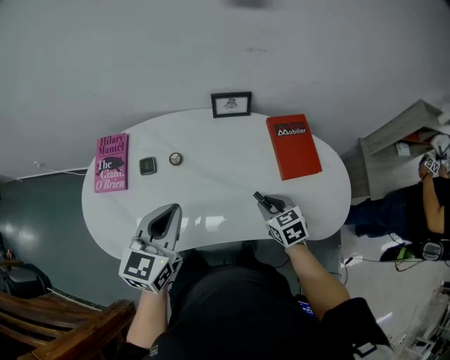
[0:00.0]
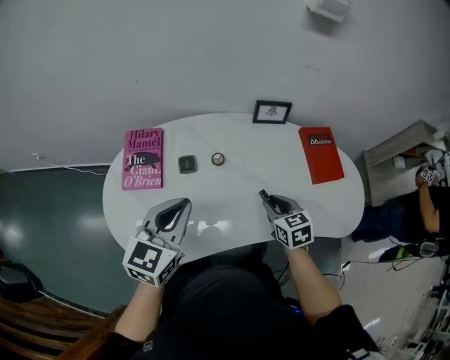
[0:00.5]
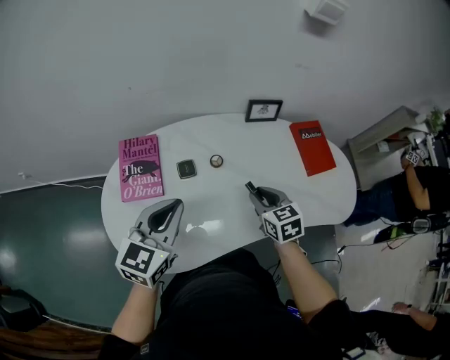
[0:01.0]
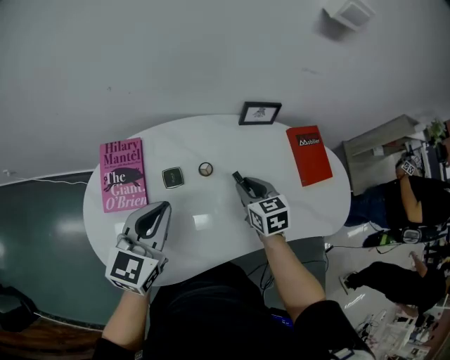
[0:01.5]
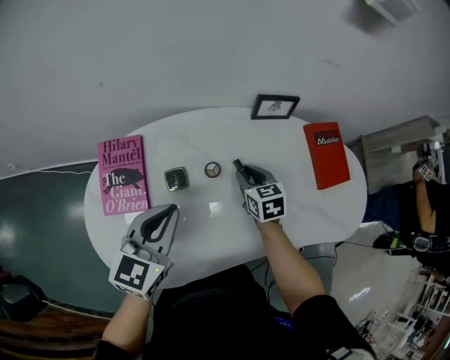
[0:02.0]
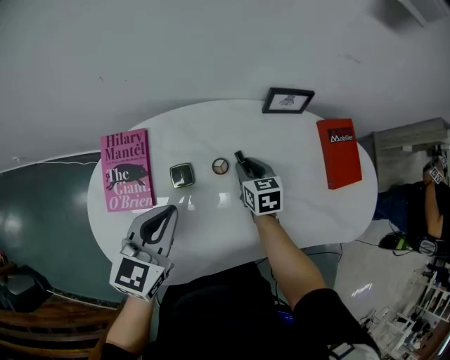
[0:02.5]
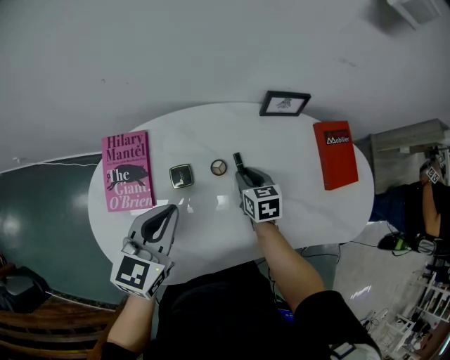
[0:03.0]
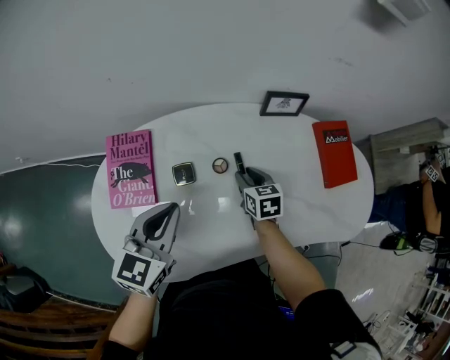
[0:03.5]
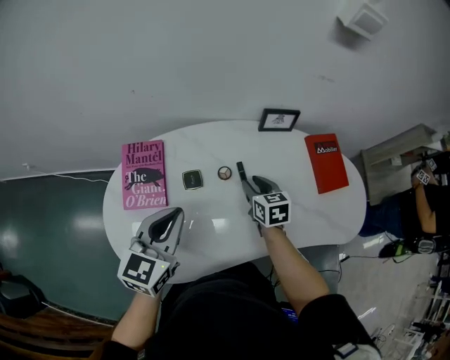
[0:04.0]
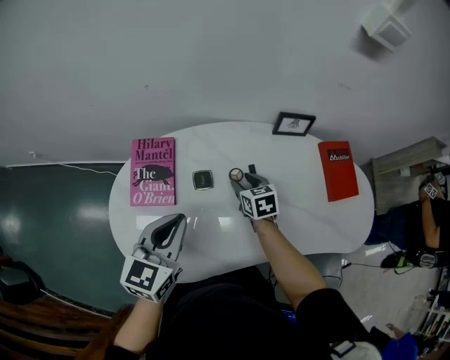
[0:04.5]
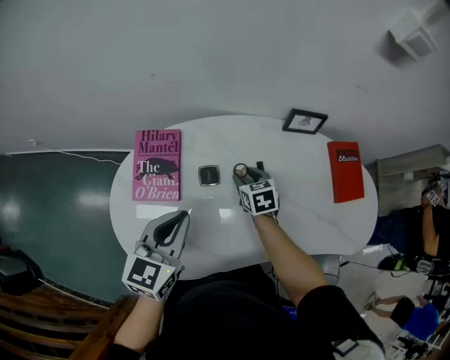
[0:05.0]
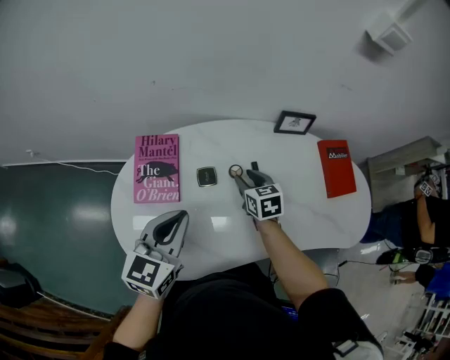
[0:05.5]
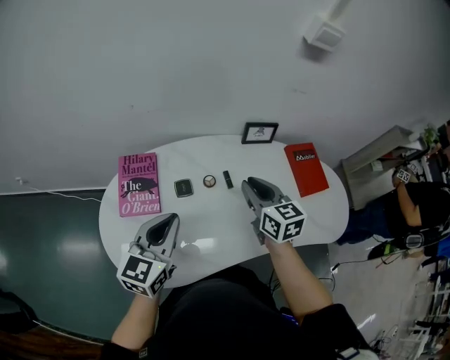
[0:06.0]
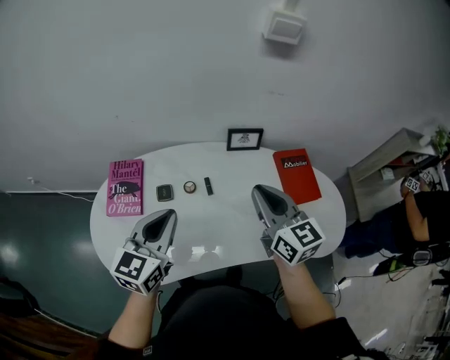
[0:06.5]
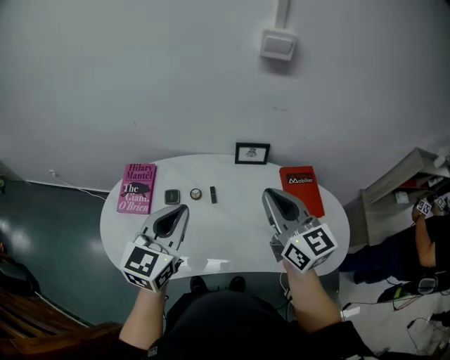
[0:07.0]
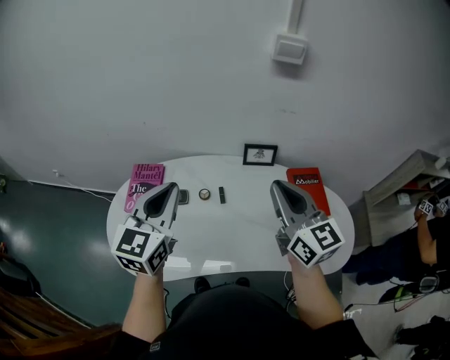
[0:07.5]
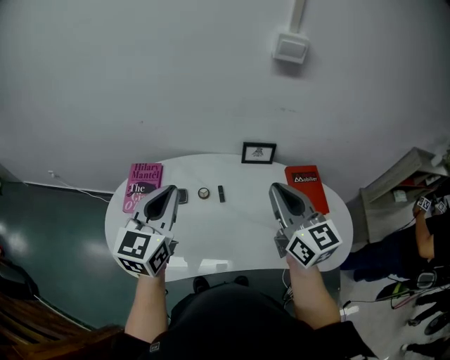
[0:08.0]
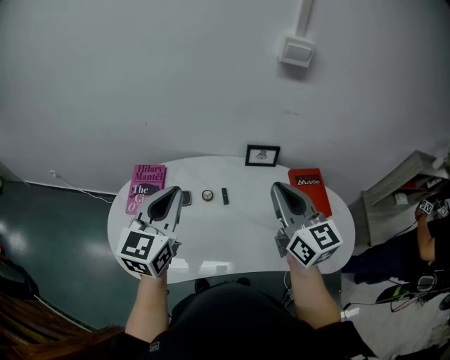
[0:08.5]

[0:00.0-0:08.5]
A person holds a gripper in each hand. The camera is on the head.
0:00.0 to 0:02.0: Both grippers move to the left and forward, approximately 25 cm.
0:02.0 to 0:04.0: The right gripper shifts by roughly 5 cm. The left gripper moves some 5 cm.
0:04.0 to 0:06.5: The right gripper travels upward and to the right by some 25 cm, tips its fingers upward by roughly 30 degrees, and closes. Meanwhile the left gripper moves to the right and upward, roughly 10 cm.
0:06.5 to 0:08.5: Both grippers move upward, about 5 cm.

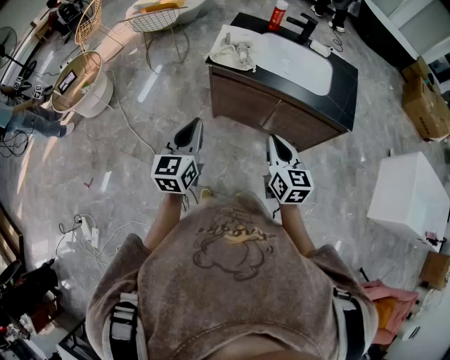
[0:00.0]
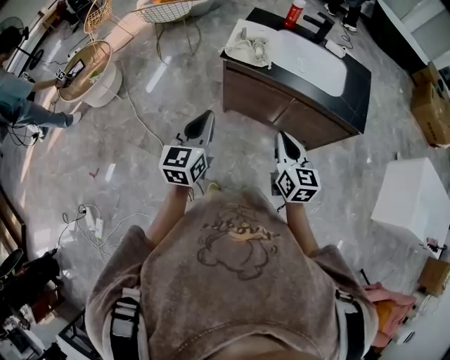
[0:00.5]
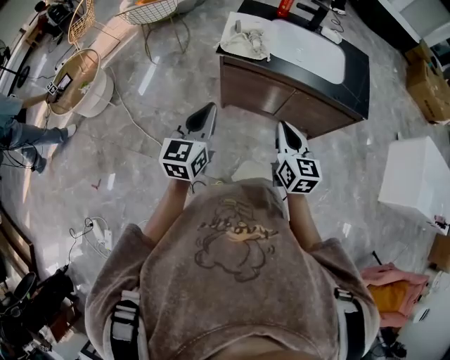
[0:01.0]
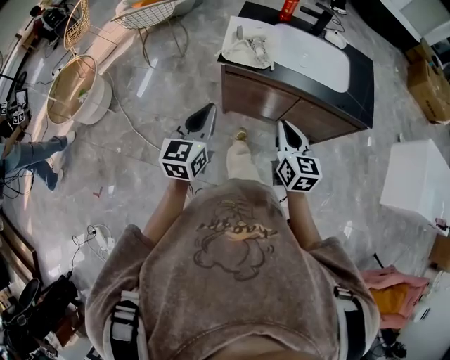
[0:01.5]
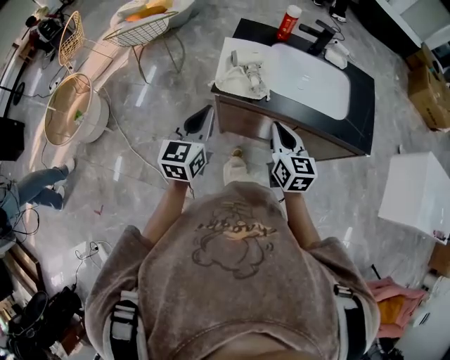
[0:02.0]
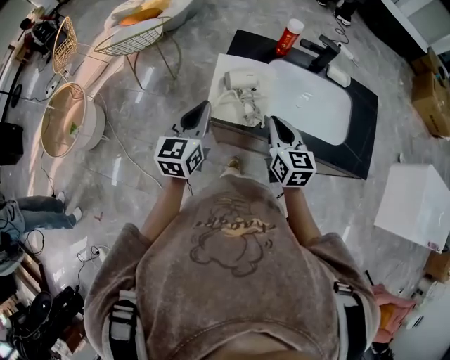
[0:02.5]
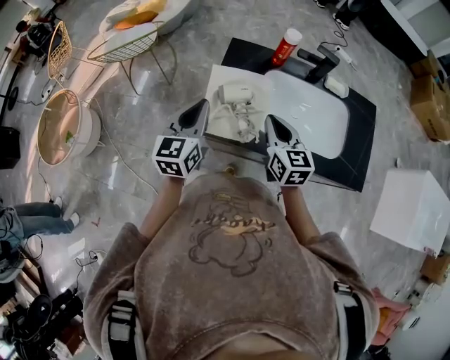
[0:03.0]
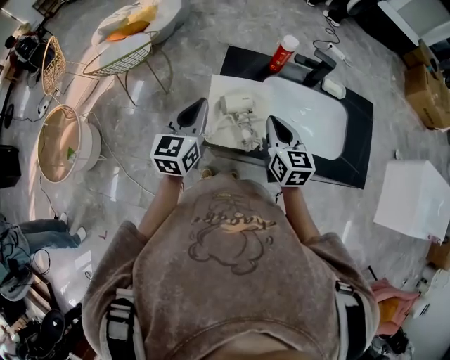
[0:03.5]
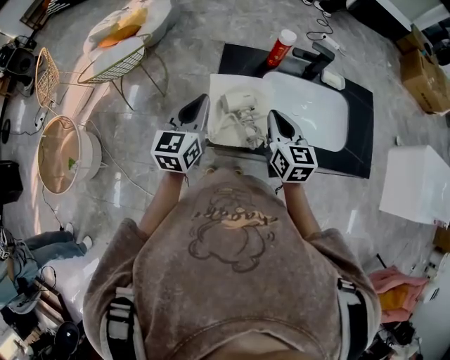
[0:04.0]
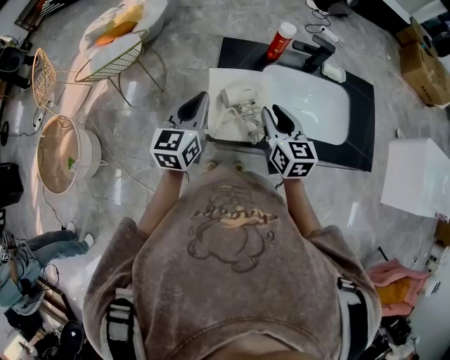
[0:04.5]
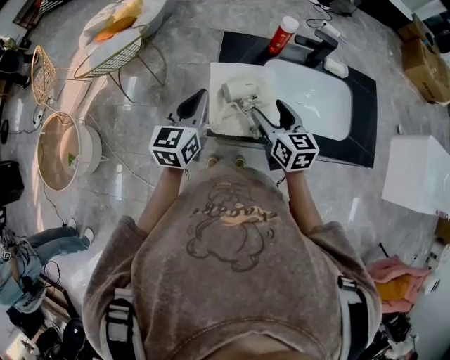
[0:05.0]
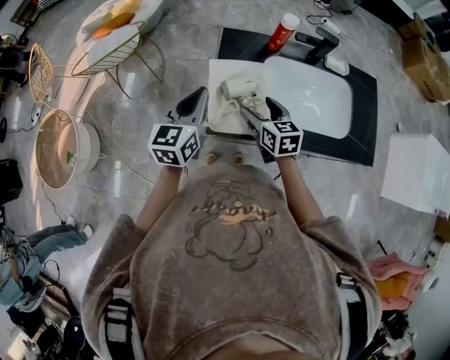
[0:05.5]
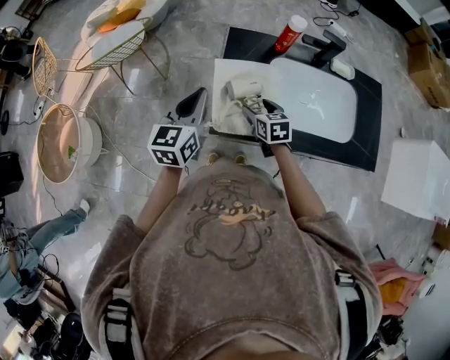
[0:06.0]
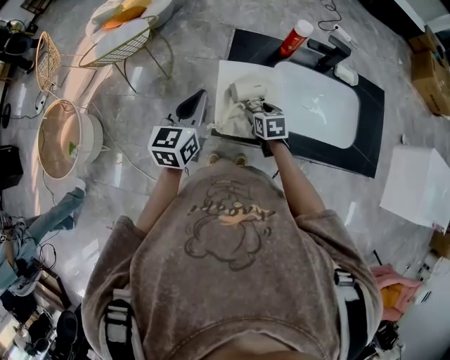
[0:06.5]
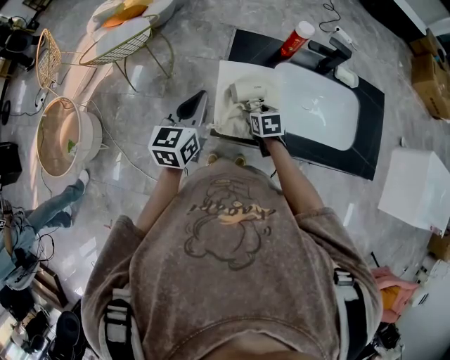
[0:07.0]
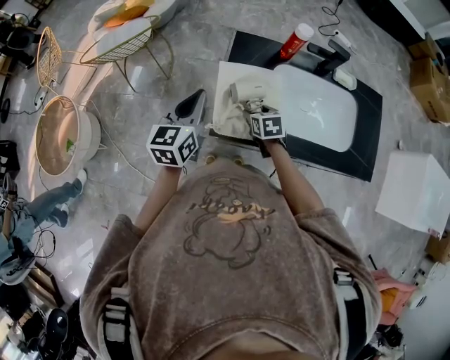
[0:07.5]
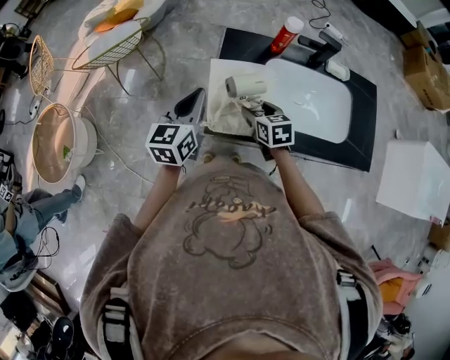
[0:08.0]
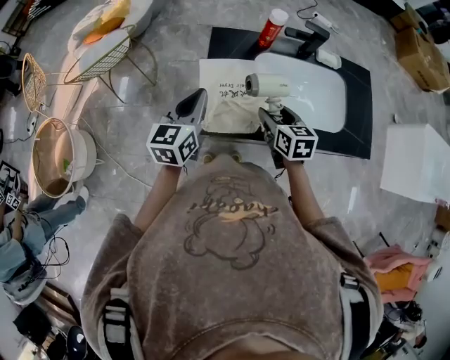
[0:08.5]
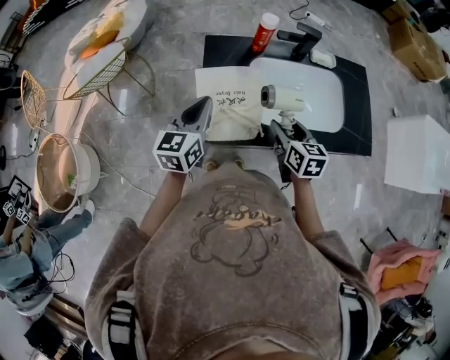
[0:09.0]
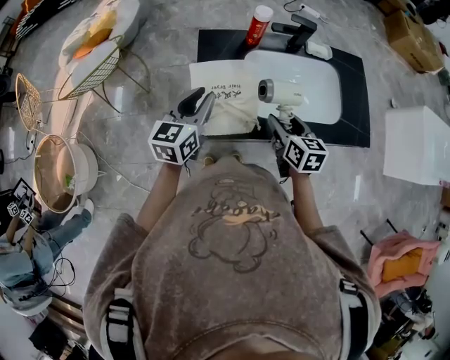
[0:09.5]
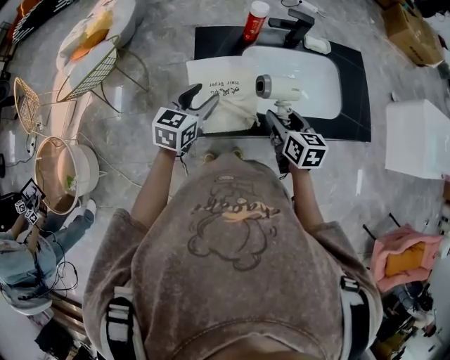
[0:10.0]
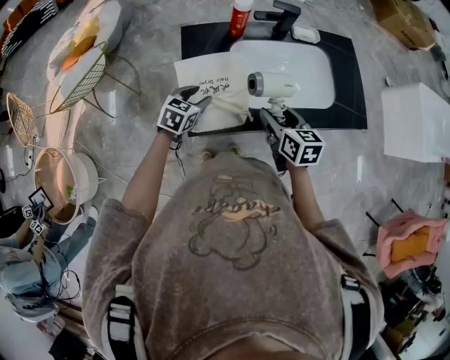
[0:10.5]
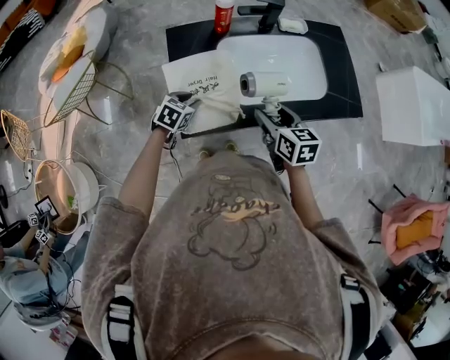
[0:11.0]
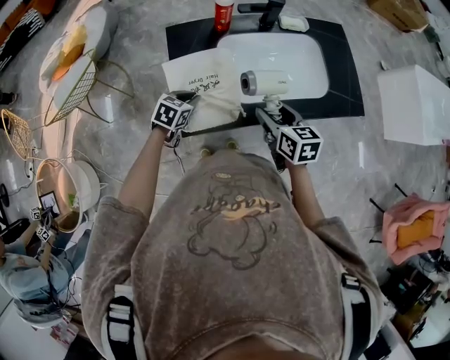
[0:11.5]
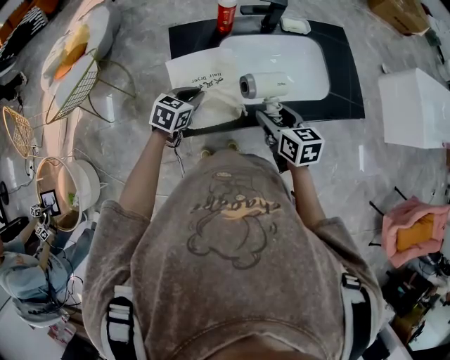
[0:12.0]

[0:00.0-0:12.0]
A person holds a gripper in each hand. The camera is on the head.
0:00.0 to 0:02.0: The grippers both shift forward by about 25 cm.
0:02.0 to 0:04.0: The grippers both shift forward by approximately 25 cm.
0:04.0 to 0:06.0: The right gripper goes about 15 cm downward, changes its angle by some 30 degrees, and opens.
0:06.0 to 0:08.0: The grippers make only small movements.
0:08.0 to 0:10.0: The right gripper heads to the right and upward, covering roughly 15 cm, and swivels some 30 degrees; the left gripper travels to the right and downward by roughly 10 cm, turns by roughly 30 degrees, and opens its fingers.
0:10.0 to 0:12.0: The left gripper heads downward, covering approximately 10 cm, rotates about 20 degrees, and closes its fingers.

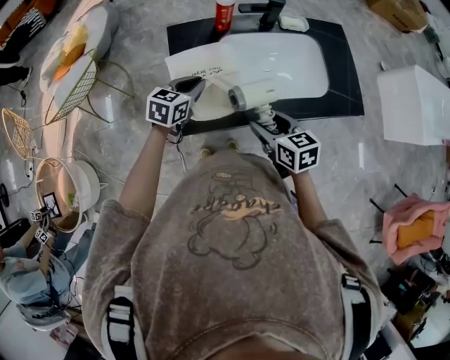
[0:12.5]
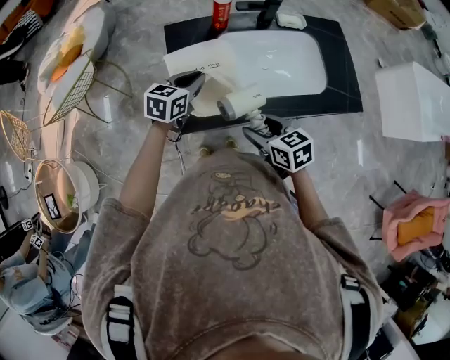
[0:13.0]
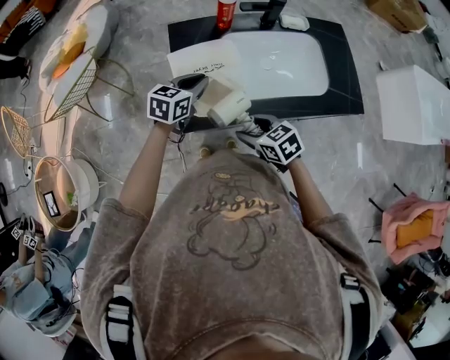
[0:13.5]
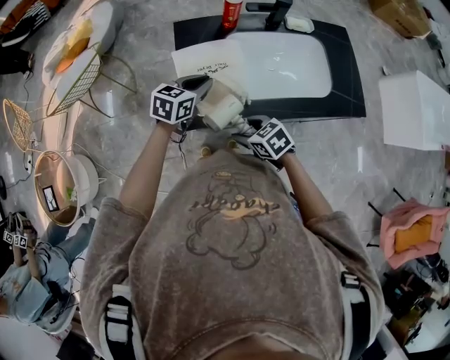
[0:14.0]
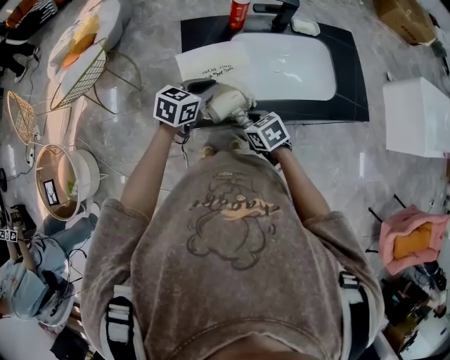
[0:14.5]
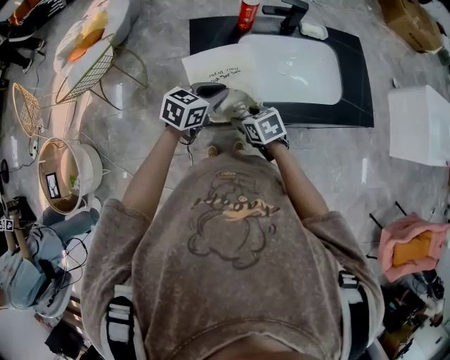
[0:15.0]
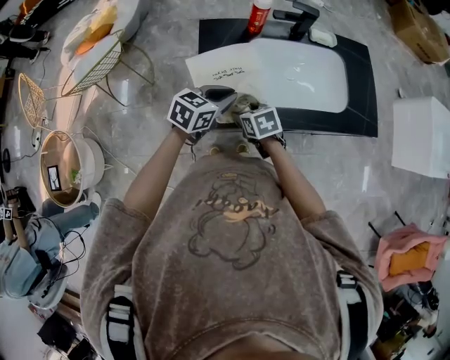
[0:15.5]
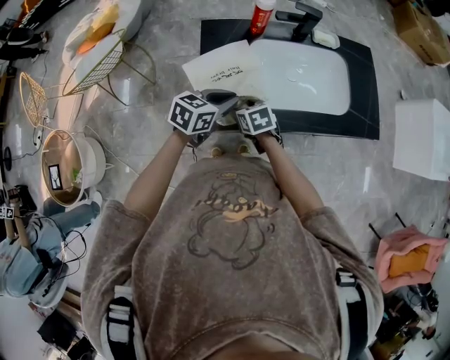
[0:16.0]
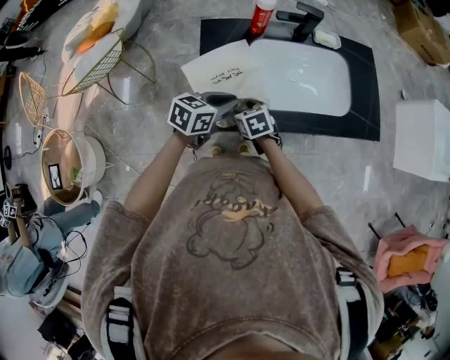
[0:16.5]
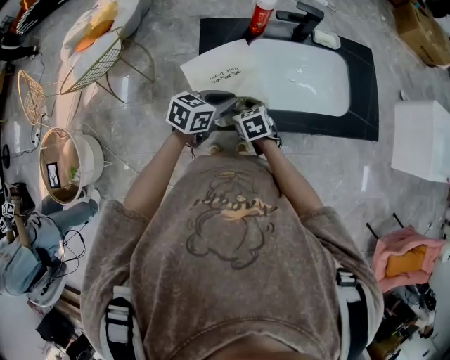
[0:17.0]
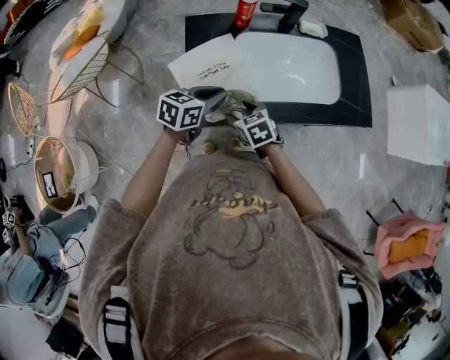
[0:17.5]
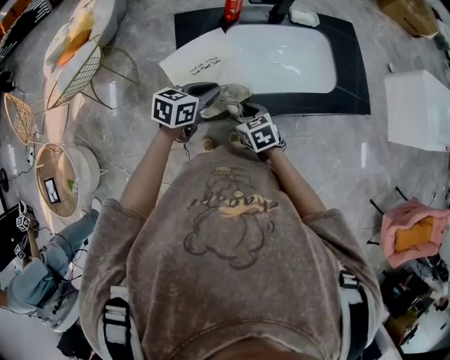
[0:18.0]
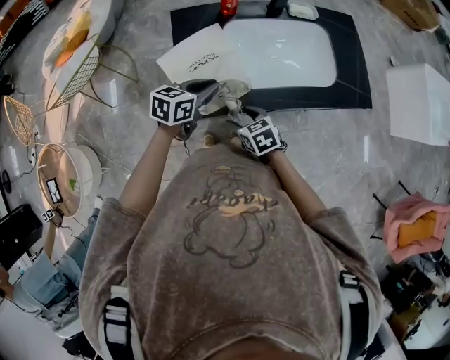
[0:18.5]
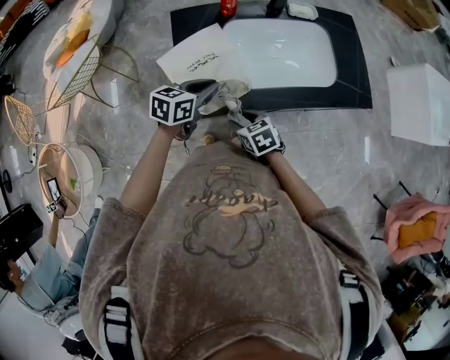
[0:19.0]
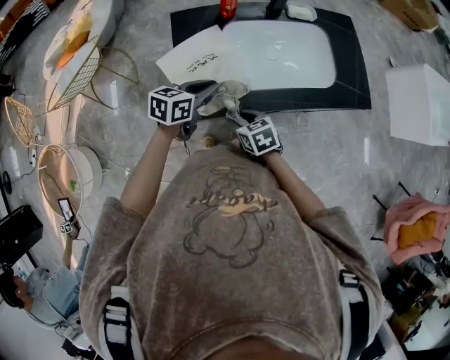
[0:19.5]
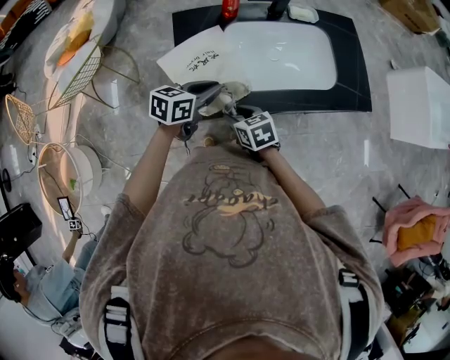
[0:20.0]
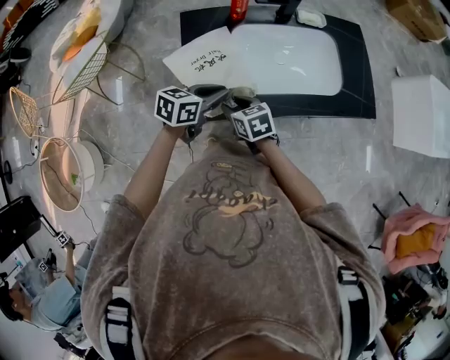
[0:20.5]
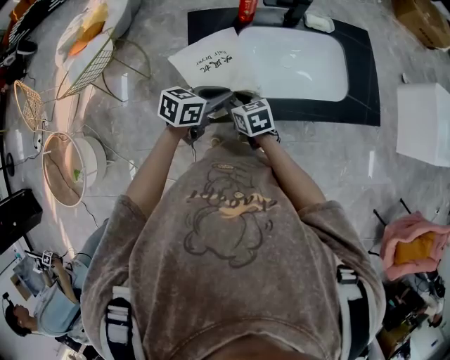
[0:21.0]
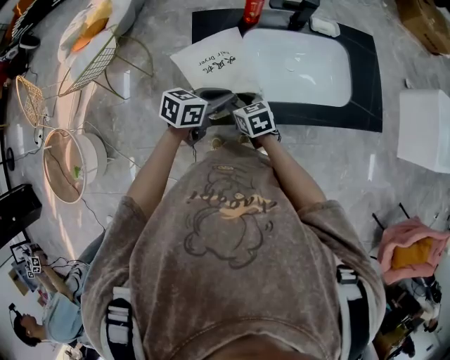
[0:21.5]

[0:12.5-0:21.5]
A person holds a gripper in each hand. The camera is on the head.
0:12.5 to 0:14.5: The right gripper shifts about 10 cm downward and to the left, and rotates approximately 30 degrees.
0:14.5 to 0:17.0: The right gripper travels forward by approximately 10 cm.
0:17.0 to 0:19.5: The right gripper shifts approximately 10 cm backward and to the right.
0:19.5 to 0:21.5: The right gripper heads forward and to the left, covering some 10 cm.
